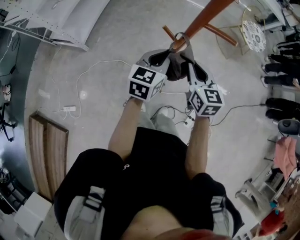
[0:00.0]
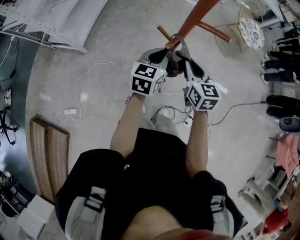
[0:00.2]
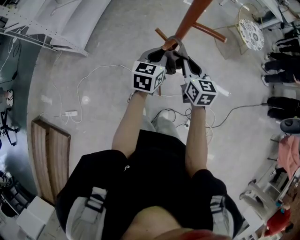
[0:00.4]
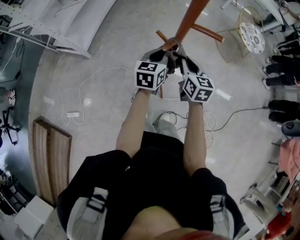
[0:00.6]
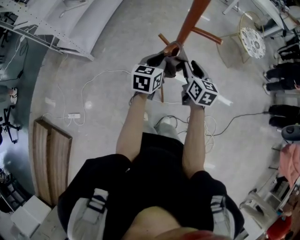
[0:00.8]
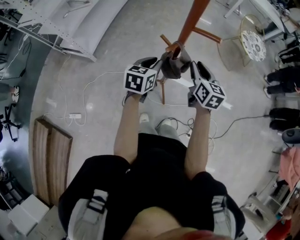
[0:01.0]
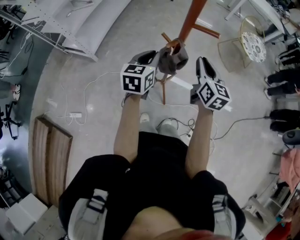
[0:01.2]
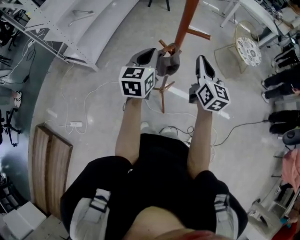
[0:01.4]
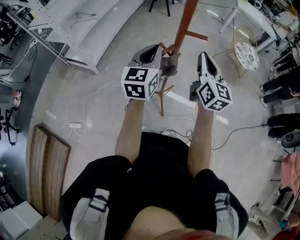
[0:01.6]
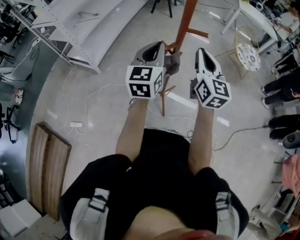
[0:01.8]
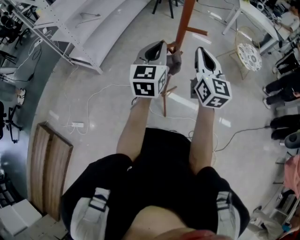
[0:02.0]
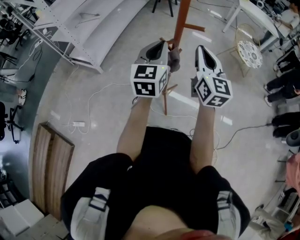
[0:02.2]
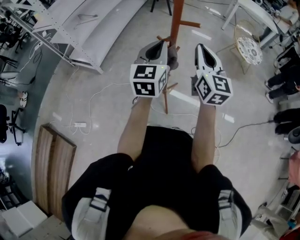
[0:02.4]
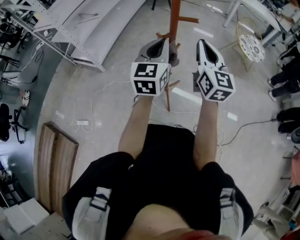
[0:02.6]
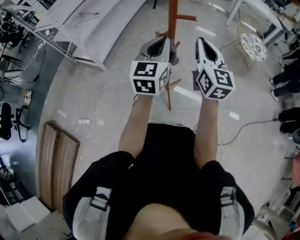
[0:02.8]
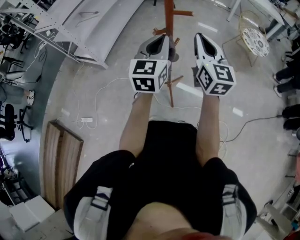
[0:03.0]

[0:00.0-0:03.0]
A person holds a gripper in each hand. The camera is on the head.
0:00.0 to 0:01.6: The two grippers go roughly 15 cm upward. The right gripper turns by approximately 30 degrees, and opens, then closes again. Meanwhile the left gripper swivels about 20 degrees.
0:01.6 to 0:03.0: The left gripper shifts some 5 cm to the right.

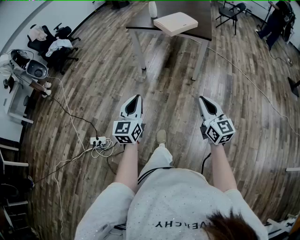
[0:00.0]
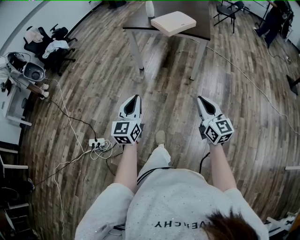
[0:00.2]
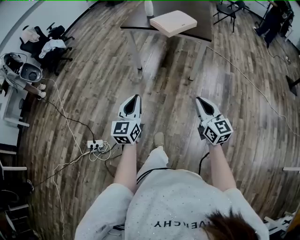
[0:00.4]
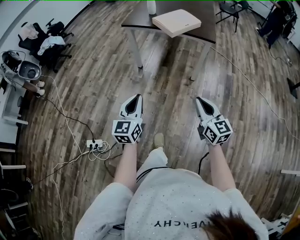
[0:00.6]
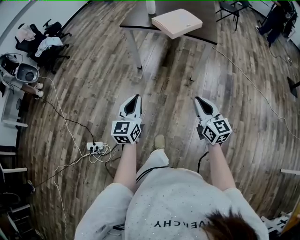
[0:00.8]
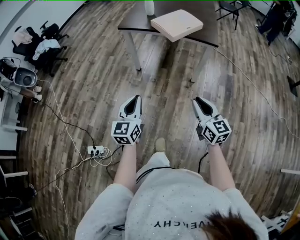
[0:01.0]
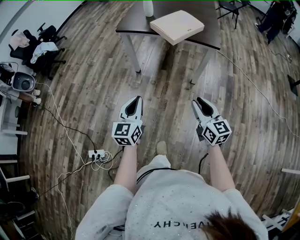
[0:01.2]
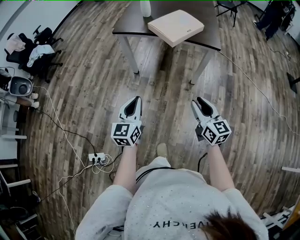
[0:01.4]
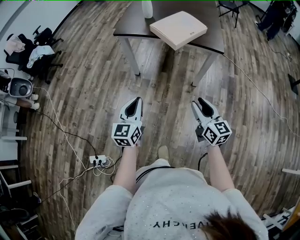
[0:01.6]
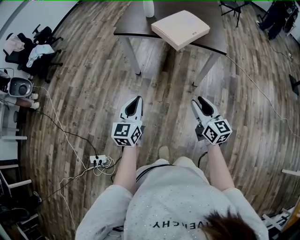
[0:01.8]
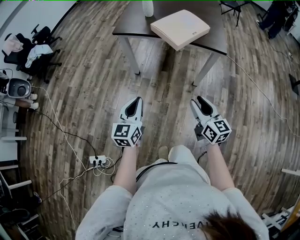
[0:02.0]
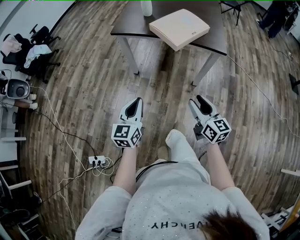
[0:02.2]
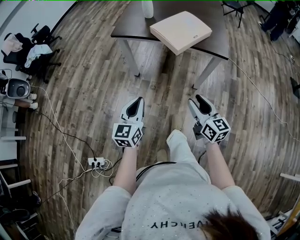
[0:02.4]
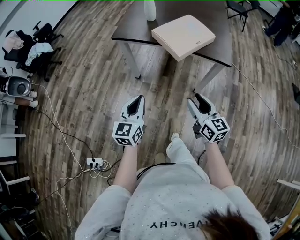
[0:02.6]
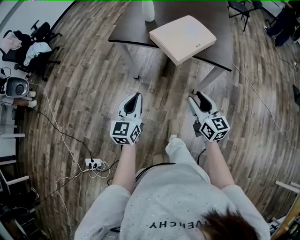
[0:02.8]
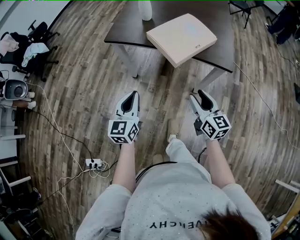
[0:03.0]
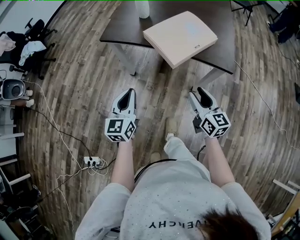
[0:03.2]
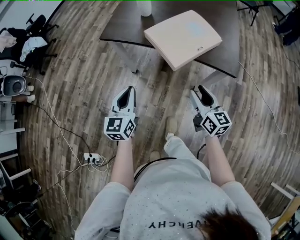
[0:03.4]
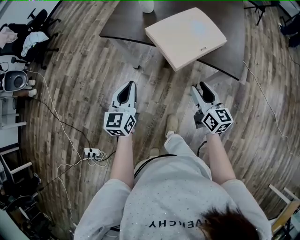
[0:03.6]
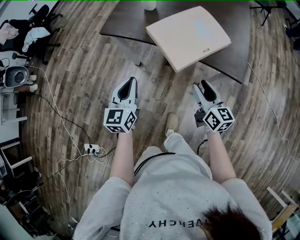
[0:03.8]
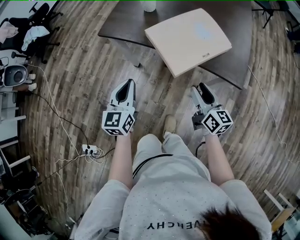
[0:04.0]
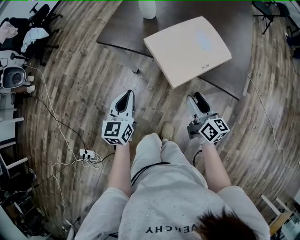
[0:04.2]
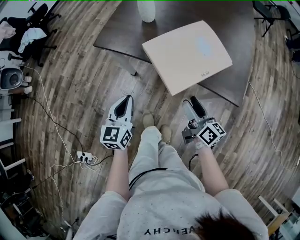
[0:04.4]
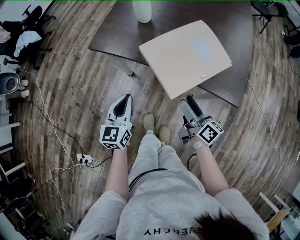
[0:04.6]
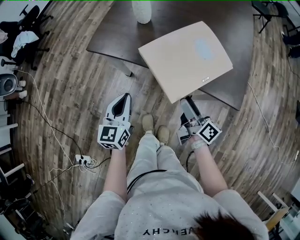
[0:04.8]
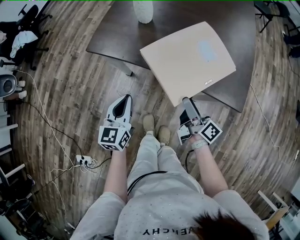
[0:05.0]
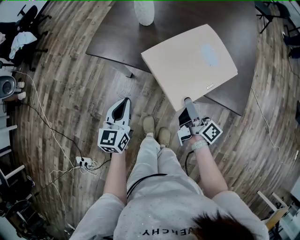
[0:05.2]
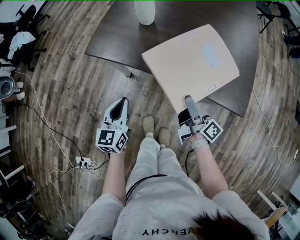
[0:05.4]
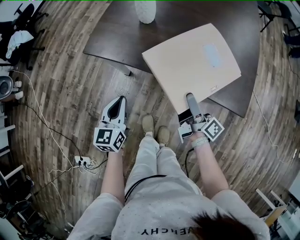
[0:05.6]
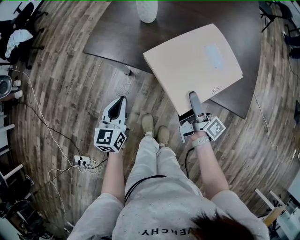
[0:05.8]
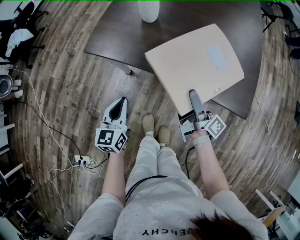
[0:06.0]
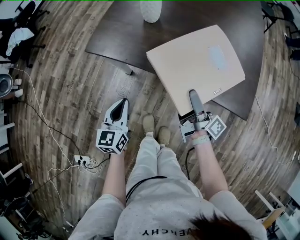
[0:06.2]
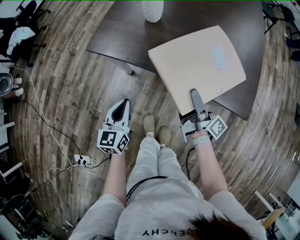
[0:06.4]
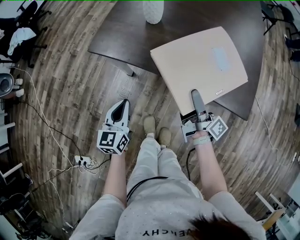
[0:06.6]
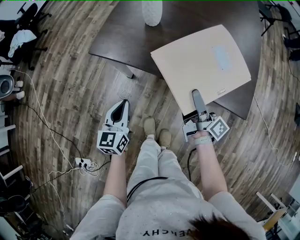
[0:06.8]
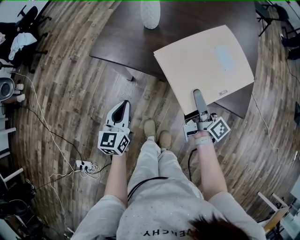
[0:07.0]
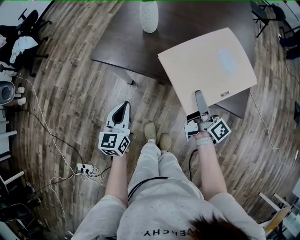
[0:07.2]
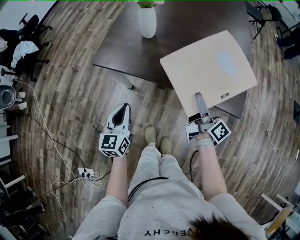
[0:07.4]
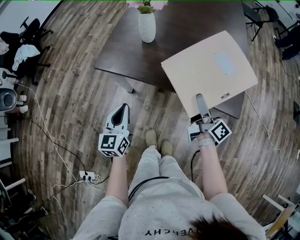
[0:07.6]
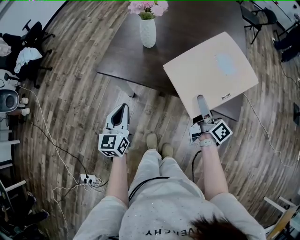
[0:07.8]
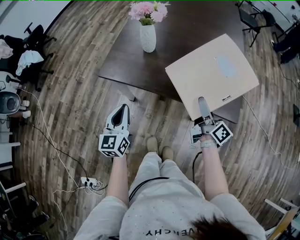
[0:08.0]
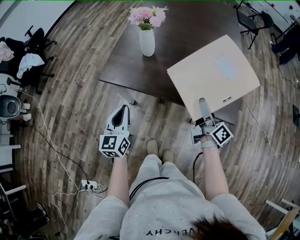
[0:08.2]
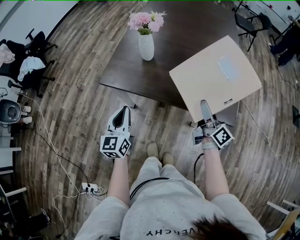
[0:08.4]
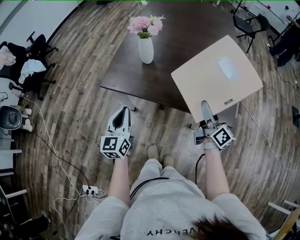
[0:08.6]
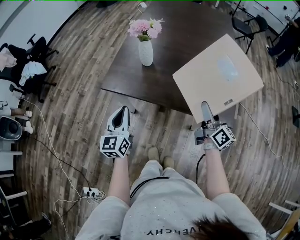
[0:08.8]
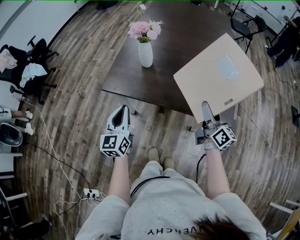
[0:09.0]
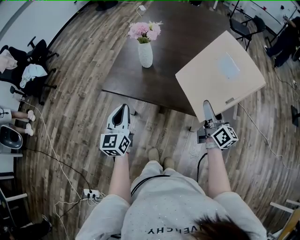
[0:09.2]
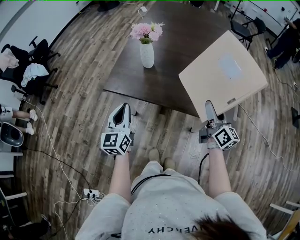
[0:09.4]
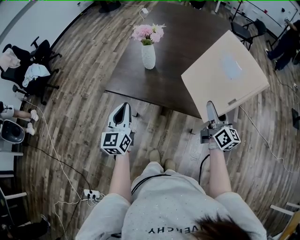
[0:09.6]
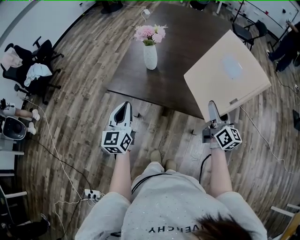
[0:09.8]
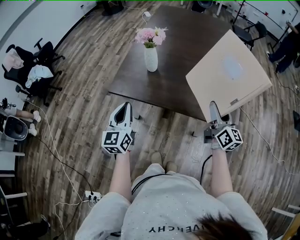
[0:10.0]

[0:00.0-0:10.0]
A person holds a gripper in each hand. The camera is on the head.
0:00.0 to 0:01.4: Both grippers travel together forward, approximately 30 cm.
0:01.4 to 0:02.8: Both grippers move forward, approximately 20 cm.
0:02.8 to 0:04.2: The two grippers go roughly 20 cm forward. The right gripper swivels approximately 20 degrees.
0:04.2 to 0:05.8: The right gripper travels forward by about 15 cm, twists approximately 40 degrees clockwise, seen from behind, and opens its fingers. The left gripper goes roughly 15 cm forward and downward.
0:05.8 to 0:07.2: The right gripper heads upward, covering some 5 cm, and closes.
0:07.2 to 0:08.6: The left gripper moves upward, about 10 cm; the right gripper shifts roughly 10 cm upward and to the right, and changes its angle by some 20 degrees.
0:08.6 to 0:10.0: The two grippers go approximately 5 cm upward. The right gripper swivels roughly 20 degrees.

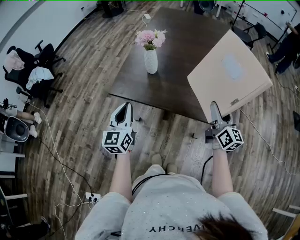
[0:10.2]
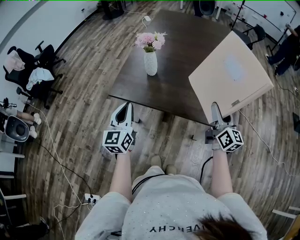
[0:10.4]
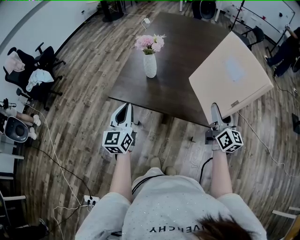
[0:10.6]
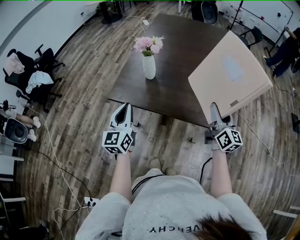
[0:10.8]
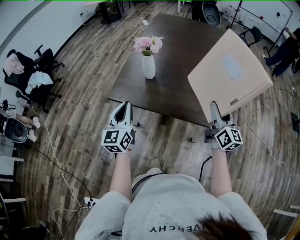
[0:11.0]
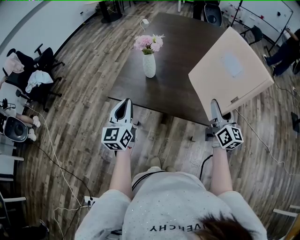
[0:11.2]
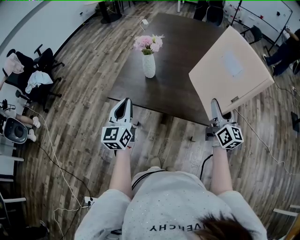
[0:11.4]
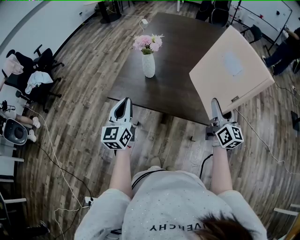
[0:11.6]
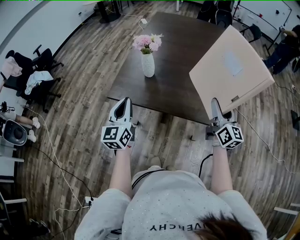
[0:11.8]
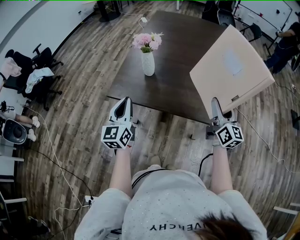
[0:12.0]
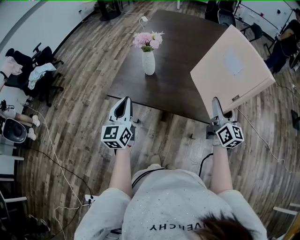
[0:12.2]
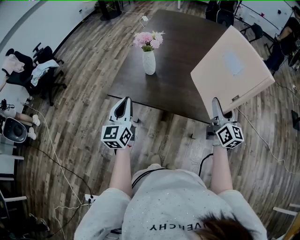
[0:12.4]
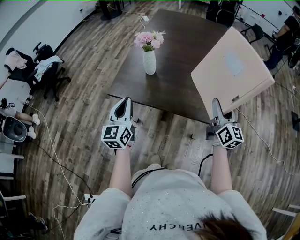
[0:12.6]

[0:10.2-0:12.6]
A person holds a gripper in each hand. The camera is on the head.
0:10.2 to 0:11.4: The grippers stay close to where they were, moving slightly.
0:11.4 to 0:12.6: Both grippers stay put.

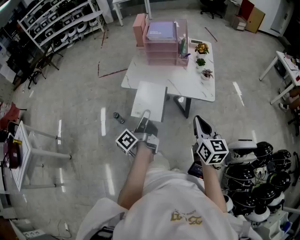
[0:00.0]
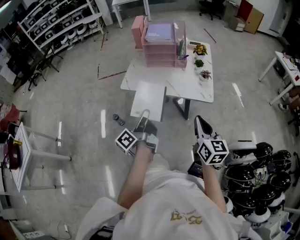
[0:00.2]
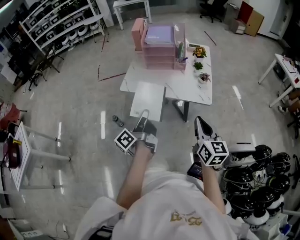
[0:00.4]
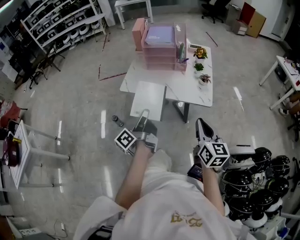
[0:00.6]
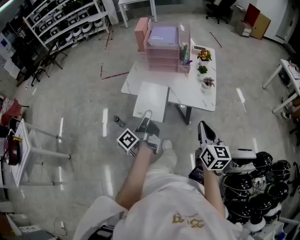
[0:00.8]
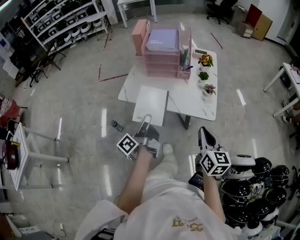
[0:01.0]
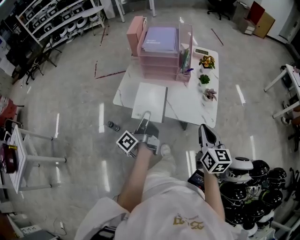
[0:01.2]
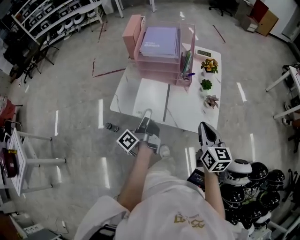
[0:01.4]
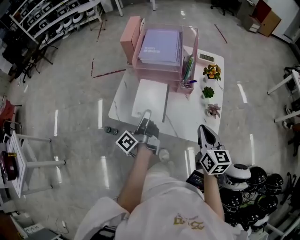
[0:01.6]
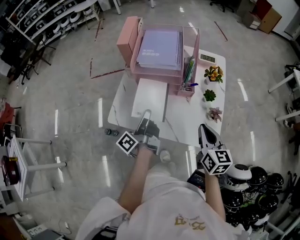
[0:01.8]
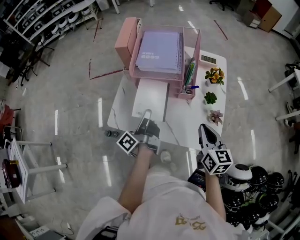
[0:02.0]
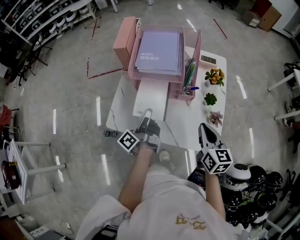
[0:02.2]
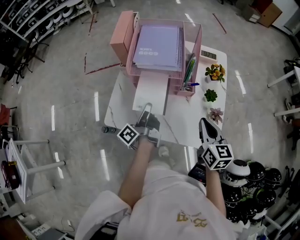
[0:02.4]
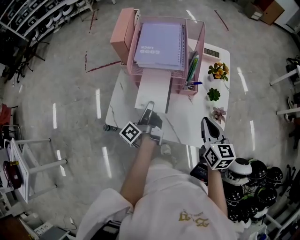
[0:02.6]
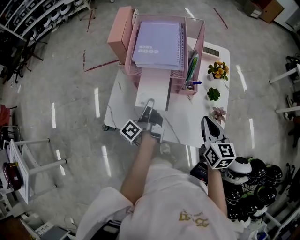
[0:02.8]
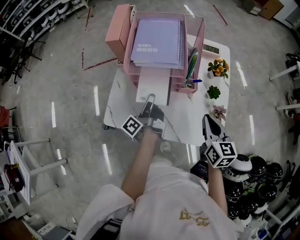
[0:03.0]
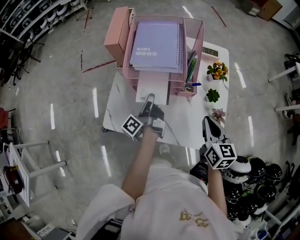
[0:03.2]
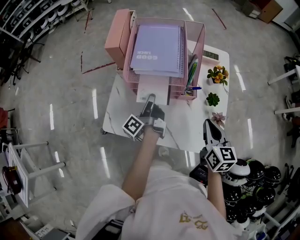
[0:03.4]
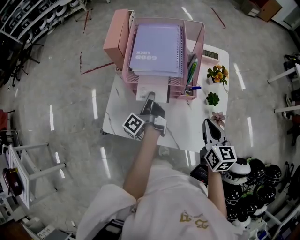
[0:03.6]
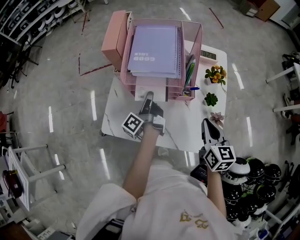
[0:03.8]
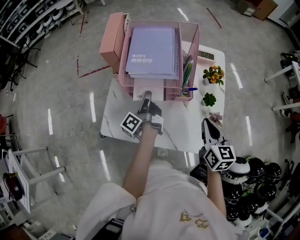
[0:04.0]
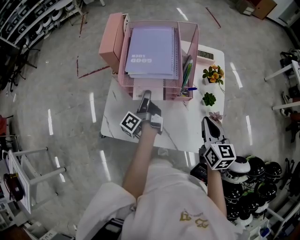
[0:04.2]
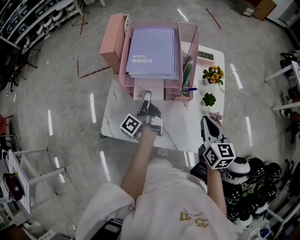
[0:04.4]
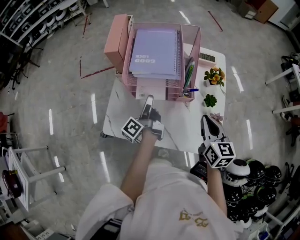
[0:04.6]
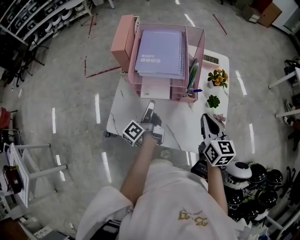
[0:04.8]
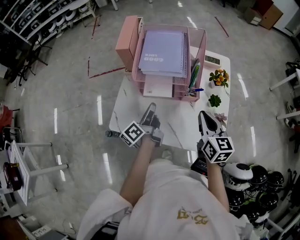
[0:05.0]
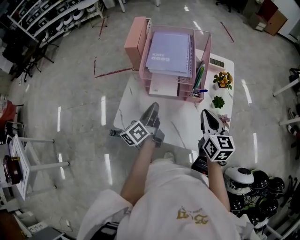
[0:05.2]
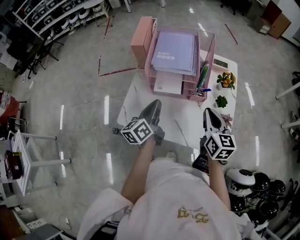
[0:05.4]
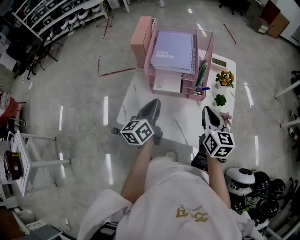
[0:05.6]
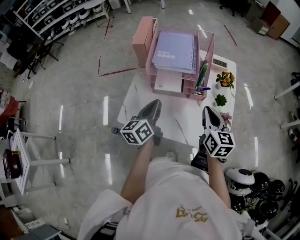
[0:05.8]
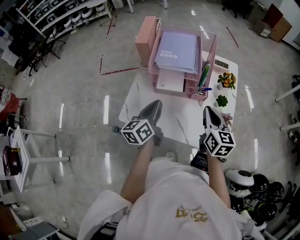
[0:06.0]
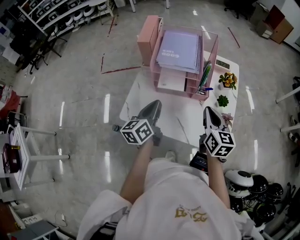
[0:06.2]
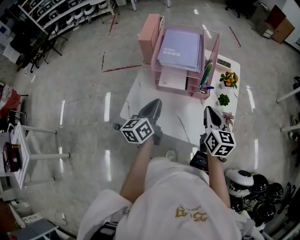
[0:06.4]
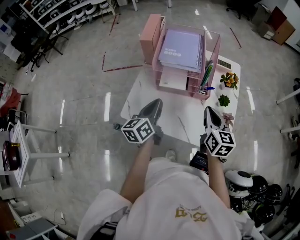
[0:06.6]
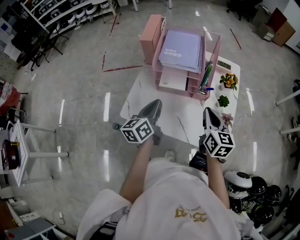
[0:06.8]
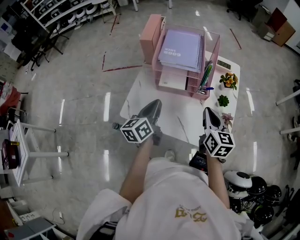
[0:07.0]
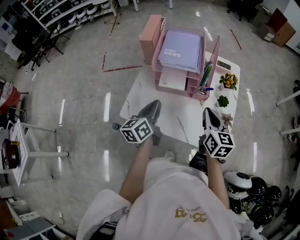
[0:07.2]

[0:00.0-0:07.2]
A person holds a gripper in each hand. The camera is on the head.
0:00.0 to 0:01.4: The right gripper ends up some 25 cm from where it was.
0:01.4 to 0:02.8: The right gripper shifts by some 15 cm.
0:04.4 to 0:05.8: The right gripper changes place by approximately 5 cm.

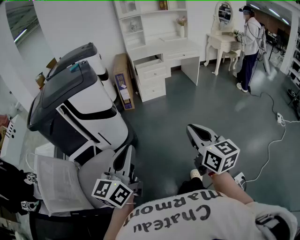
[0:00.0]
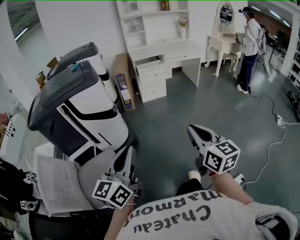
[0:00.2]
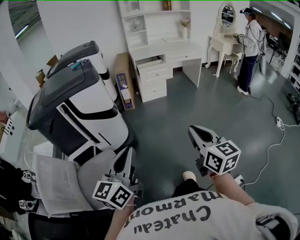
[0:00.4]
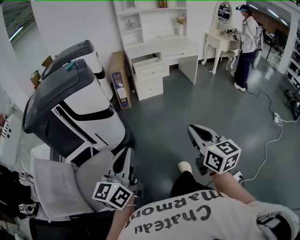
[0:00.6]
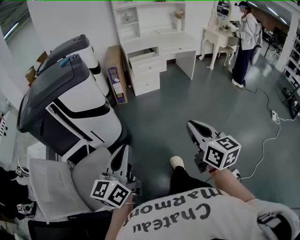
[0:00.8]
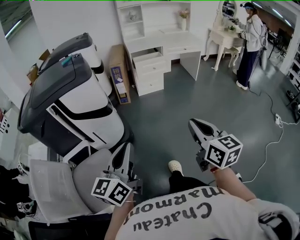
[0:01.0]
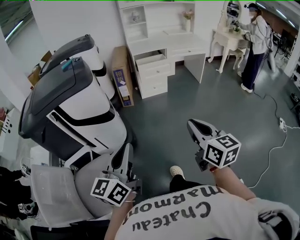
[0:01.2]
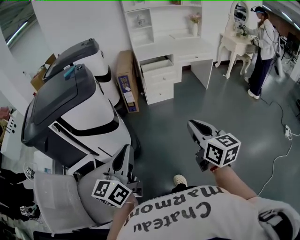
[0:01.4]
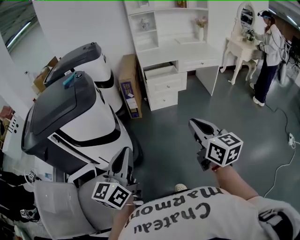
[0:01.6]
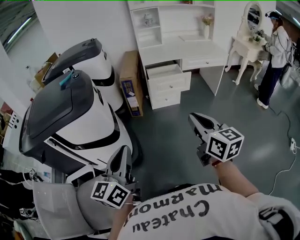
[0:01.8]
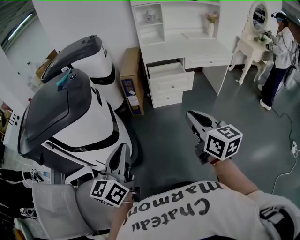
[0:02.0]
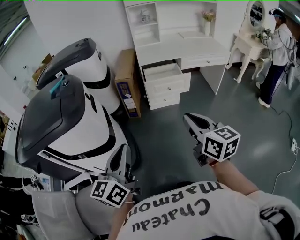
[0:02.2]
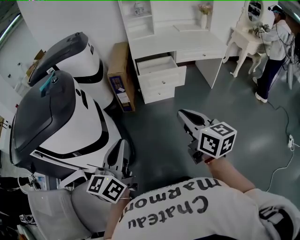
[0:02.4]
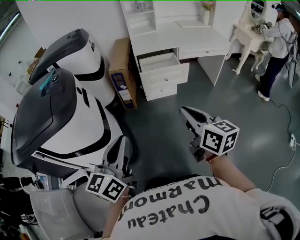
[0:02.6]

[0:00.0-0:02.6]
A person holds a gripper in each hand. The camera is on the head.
0:00.0 to 0:01.2: Both grippers move forward, about 15 cm.
0:01.2 to 0:02.6: Both grippers travel together forward, roughly 35 cm.
